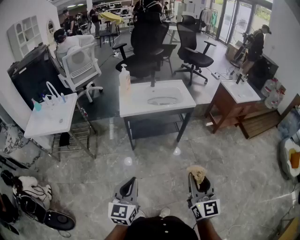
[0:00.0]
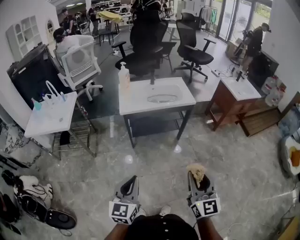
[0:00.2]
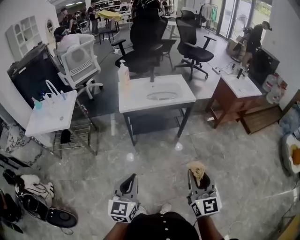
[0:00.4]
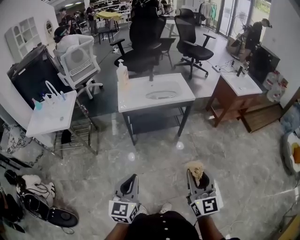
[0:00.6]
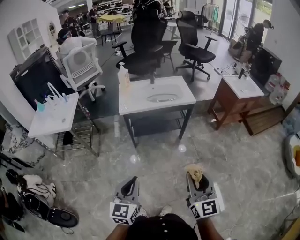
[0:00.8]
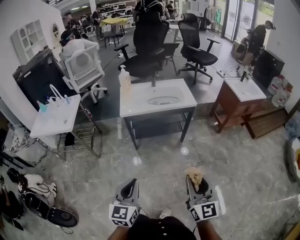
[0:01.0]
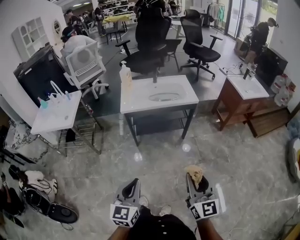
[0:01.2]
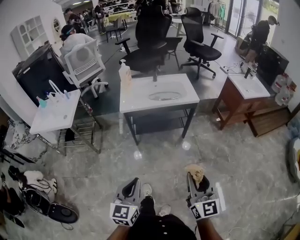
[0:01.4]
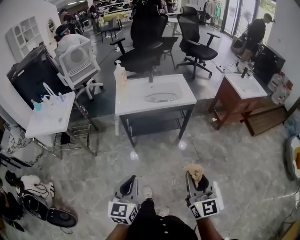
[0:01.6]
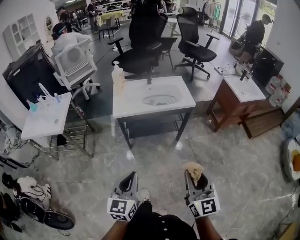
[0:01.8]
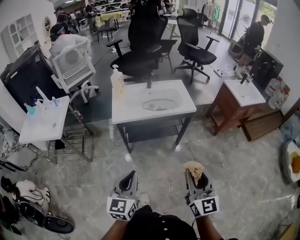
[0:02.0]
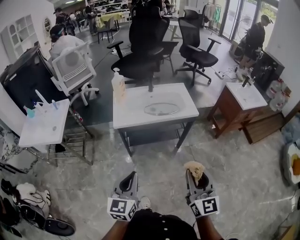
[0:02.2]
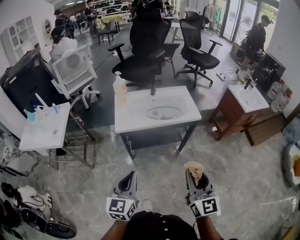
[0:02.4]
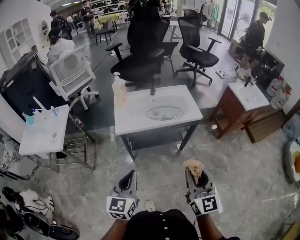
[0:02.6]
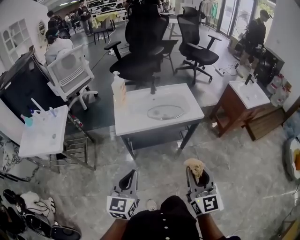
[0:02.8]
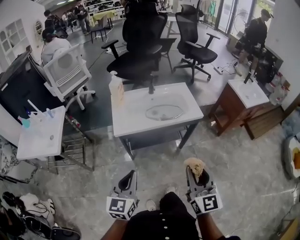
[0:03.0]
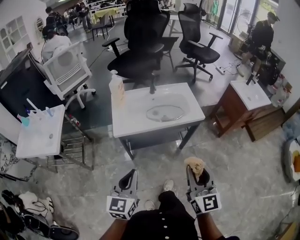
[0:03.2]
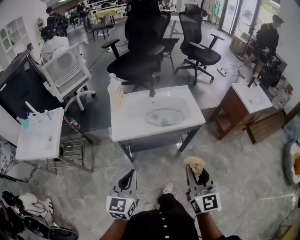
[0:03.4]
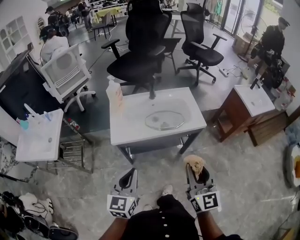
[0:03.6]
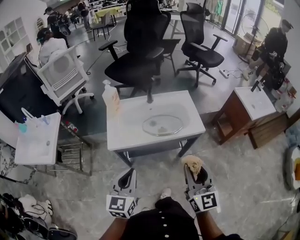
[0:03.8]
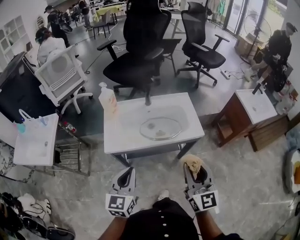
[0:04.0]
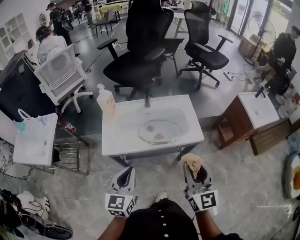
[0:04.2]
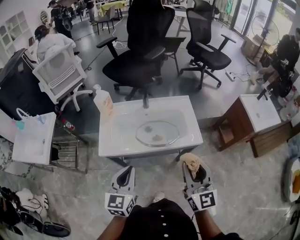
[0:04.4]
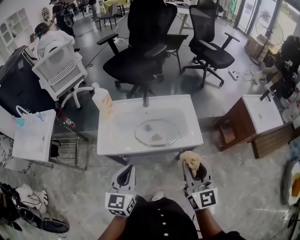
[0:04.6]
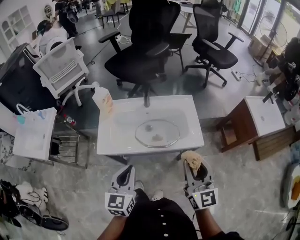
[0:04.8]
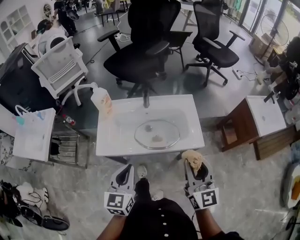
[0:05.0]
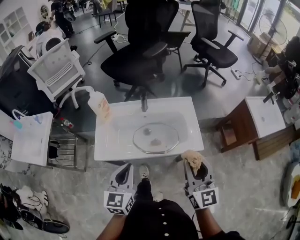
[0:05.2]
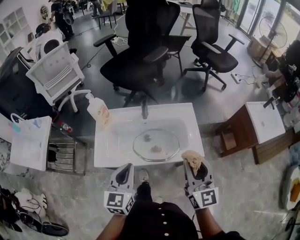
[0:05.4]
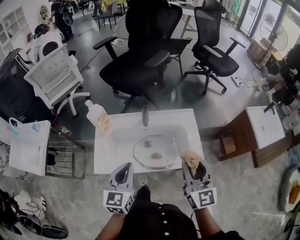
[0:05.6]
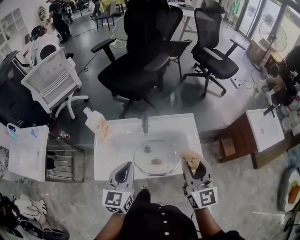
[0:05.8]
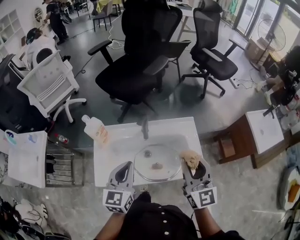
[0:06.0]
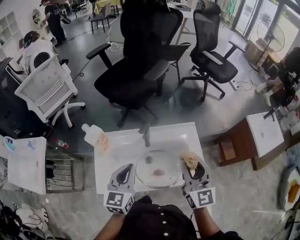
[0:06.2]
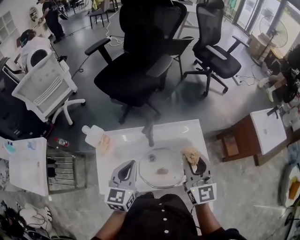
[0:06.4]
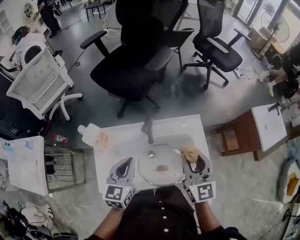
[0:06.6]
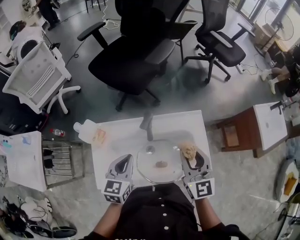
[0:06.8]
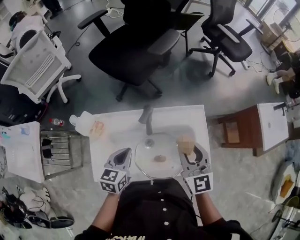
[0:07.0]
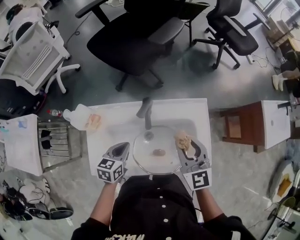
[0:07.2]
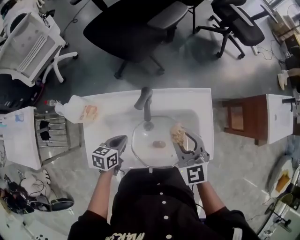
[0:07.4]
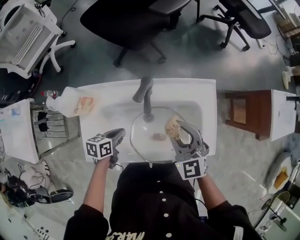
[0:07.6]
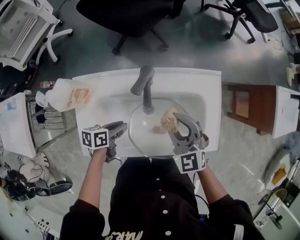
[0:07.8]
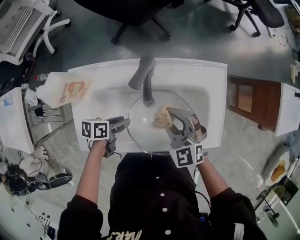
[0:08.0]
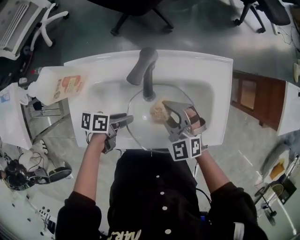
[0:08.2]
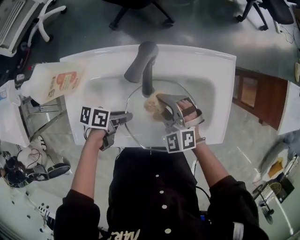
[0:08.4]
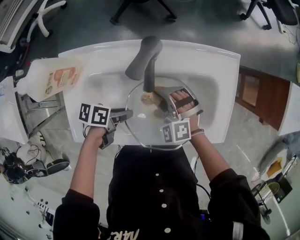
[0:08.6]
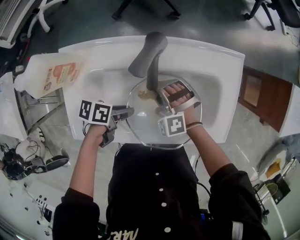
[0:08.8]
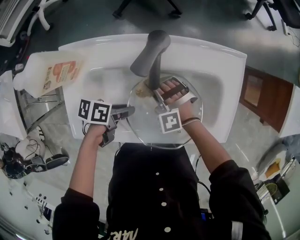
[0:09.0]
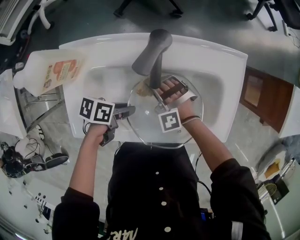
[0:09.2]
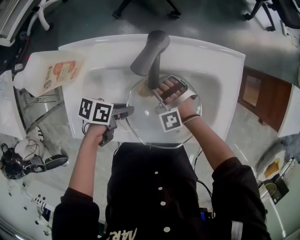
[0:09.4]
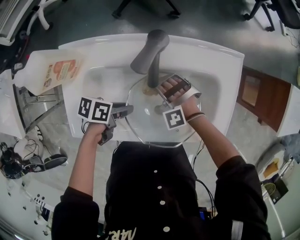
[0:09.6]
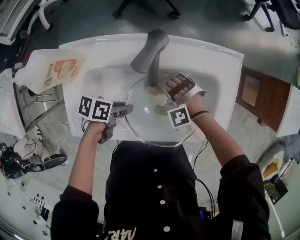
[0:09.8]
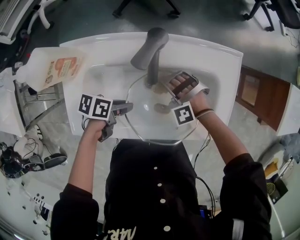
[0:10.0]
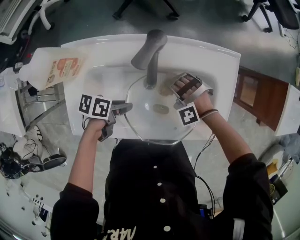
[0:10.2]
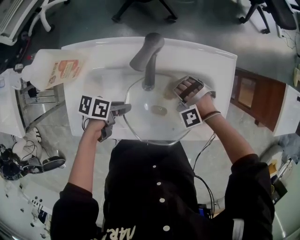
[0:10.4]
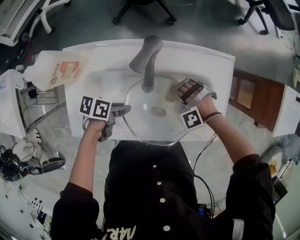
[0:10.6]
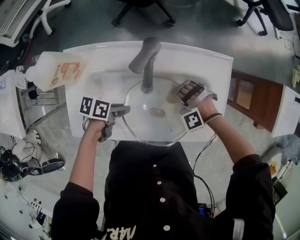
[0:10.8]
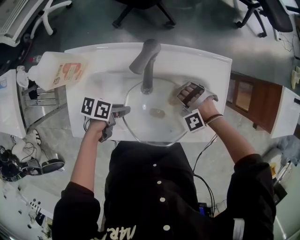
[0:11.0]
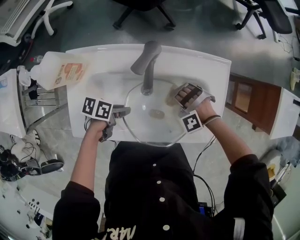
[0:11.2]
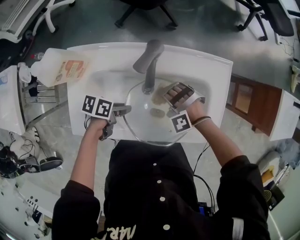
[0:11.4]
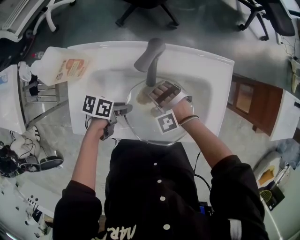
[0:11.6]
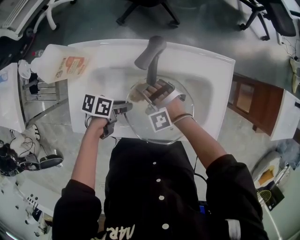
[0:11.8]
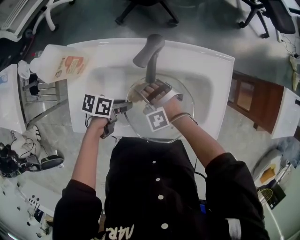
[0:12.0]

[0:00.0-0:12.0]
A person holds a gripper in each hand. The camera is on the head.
0.0 to 1.6 s: The right gripper shifts about 5 cm forward. Meanwhile the left gripper moves to the right, some 5 cm.
1.6 to 3.0 s: The grippers both shift forward by some 20 cm.
3.0 to 4.4 s: The left gripper heads forward and to the right, covering approximately 25 cm. Meanwhile the right gripper shifts roughly 25 cm forward.
4.4 to 6.0 s: The grippers both shift forward by about 25 cm.
6.0 to 7.6 s: The left gripper travels downward by roughly 25 cm, and tips its fingers downward by roughly 30 degrees. The right gripper travels downward, forward and to the left by roughly 25 cm, and rotates roughly 40 degrees.
7.6 to 9.0 s: The left gripper travels downward by some 5 cm, rotates about 30 degrees, and opens its fingers. Meanwhile the right gripper travels downward by roughly 25 cm, and rolls counterclockwise, seen from behind, by some 50 degrees.
9.0 to 10.4 s: The right gripper ends up some 10 cm from where it was, and changes its angle by some 20 degrees.
10.4 to 12.0 s: The right gripper moves approximately 15 cm.

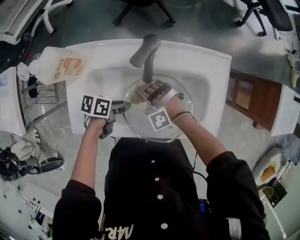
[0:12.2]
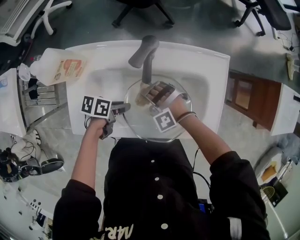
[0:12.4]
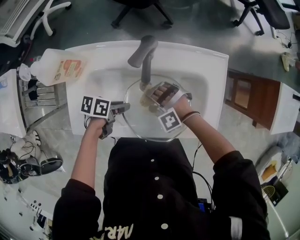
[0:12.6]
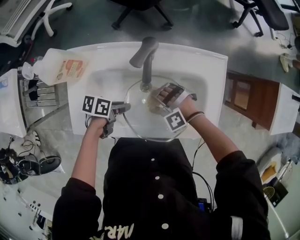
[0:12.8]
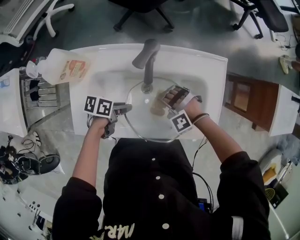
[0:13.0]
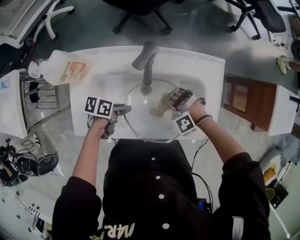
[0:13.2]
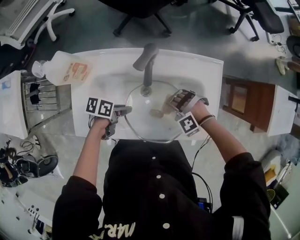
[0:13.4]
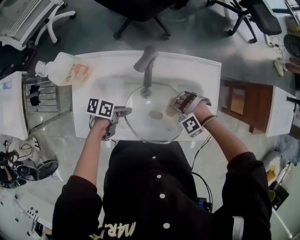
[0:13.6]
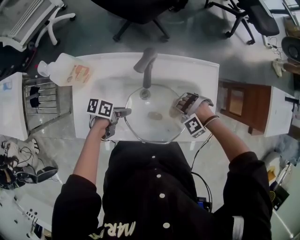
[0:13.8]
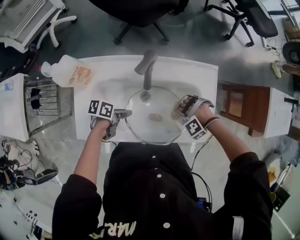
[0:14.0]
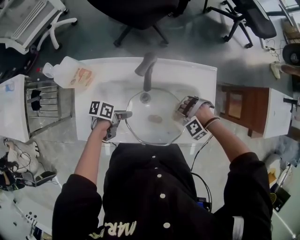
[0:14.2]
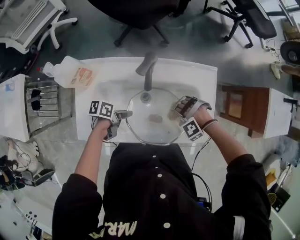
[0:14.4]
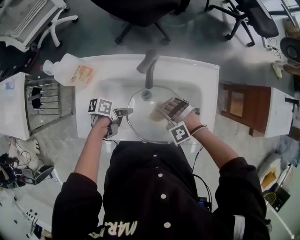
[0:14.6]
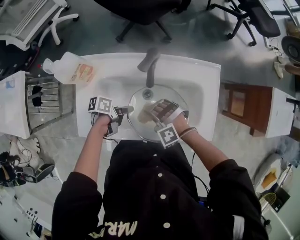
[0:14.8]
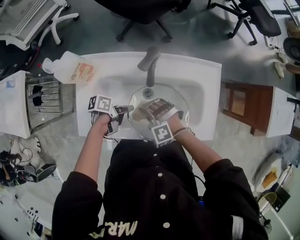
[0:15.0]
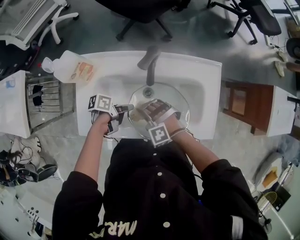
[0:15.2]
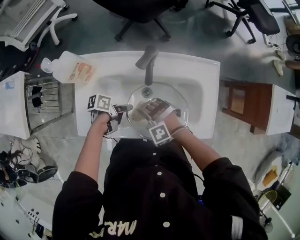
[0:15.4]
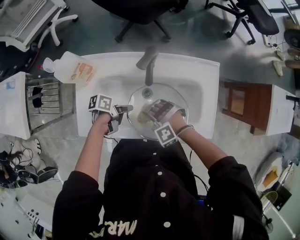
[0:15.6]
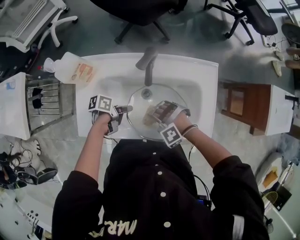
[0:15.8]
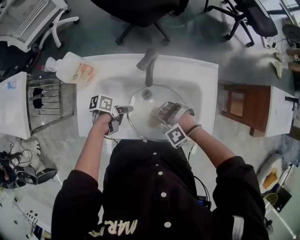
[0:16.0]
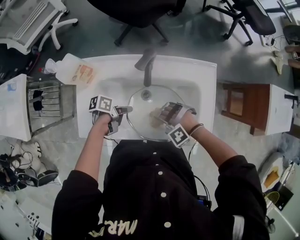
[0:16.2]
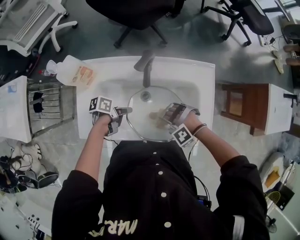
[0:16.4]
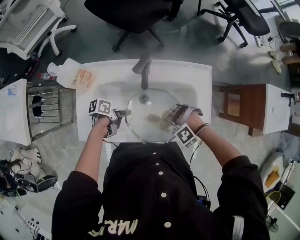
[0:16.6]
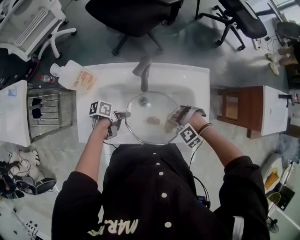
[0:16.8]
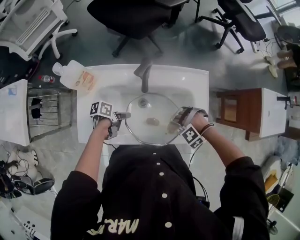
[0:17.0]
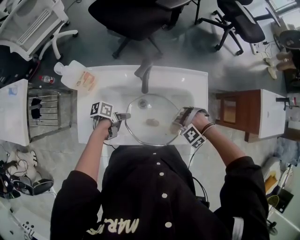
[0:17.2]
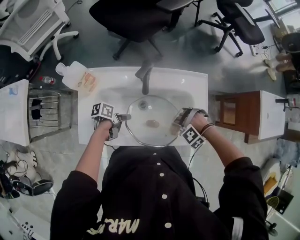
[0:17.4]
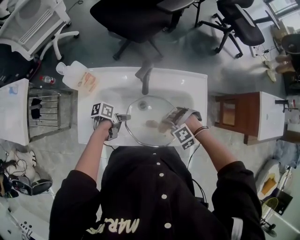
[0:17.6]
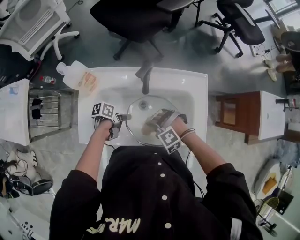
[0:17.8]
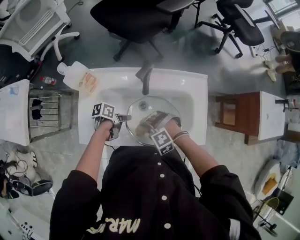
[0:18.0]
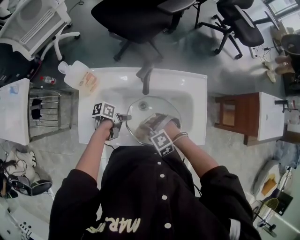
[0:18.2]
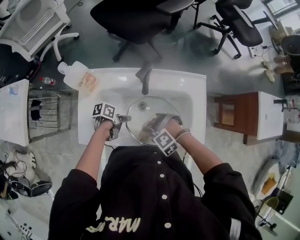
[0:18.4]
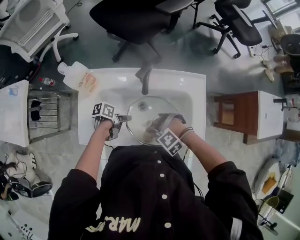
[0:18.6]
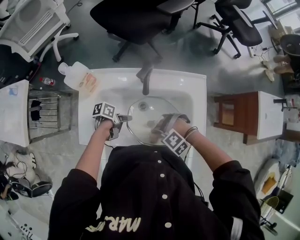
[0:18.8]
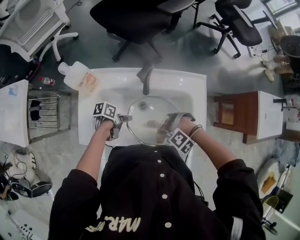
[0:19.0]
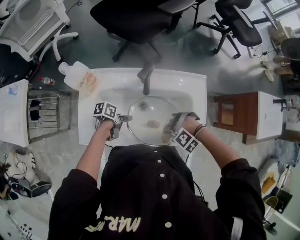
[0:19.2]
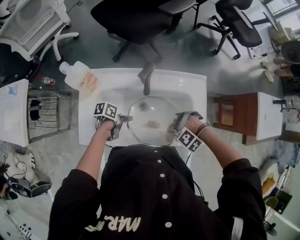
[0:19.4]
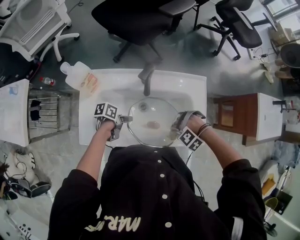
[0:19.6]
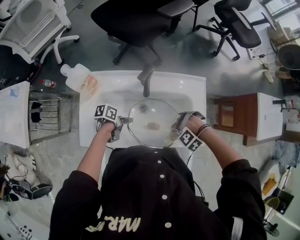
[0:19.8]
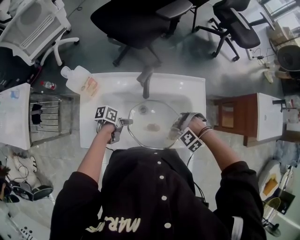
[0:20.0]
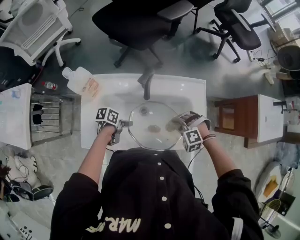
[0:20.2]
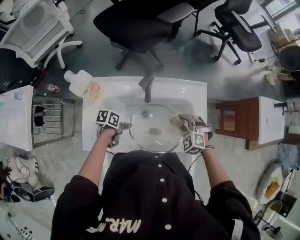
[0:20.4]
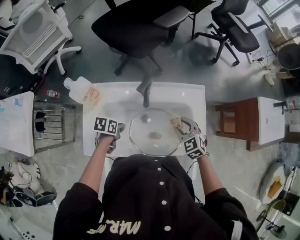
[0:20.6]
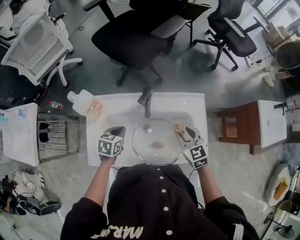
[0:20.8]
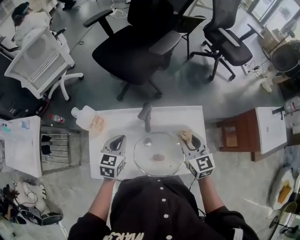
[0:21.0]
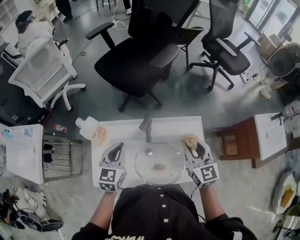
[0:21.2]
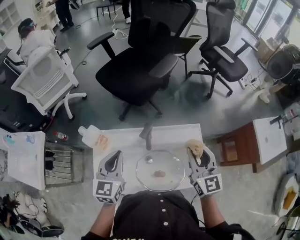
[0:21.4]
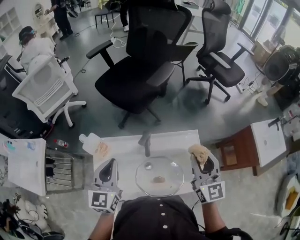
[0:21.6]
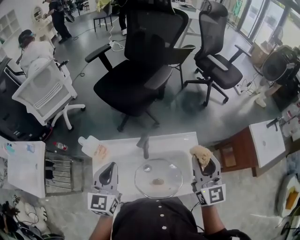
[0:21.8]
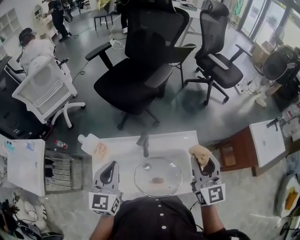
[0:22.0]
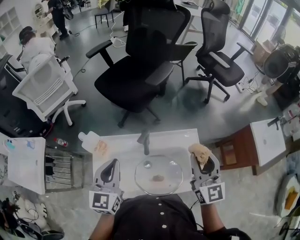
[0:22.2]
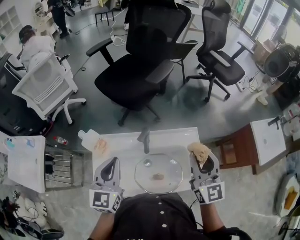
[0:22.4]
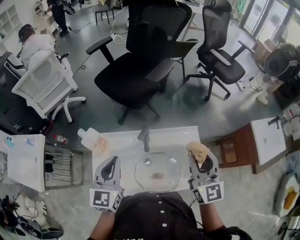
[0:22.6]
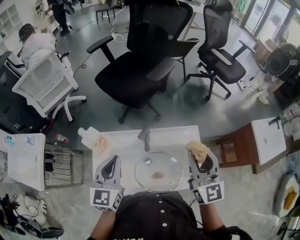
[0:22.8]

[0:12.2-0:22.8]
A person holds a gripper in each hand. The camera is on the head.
12.2 to 13.8 s: The right gripper ends up roughly 20 cm from where it was, and rotates roughly 40 degrees.
13.8 to 15.2 s: The right gripper moves about 20 cm, and rotates approximately 40 degrees.
15.2 to 16.8 s: The right gripper ends up roughly 20 cm from where it was, and changes its angle by roughly 40 degrees.
16.8 to 18.2 s: The right gripper ends up about 15 cm from where it was.
18.2 to 19.8 s: The right gripper moves some 15 cm, and changes its angle by some 30 degrees.
19.8 to 21.2 s: The grippers both shift upward by some 25 cm. The right gripper tips its fingers upward by approximately 70 degrees. The left gripper turns by approximately 80 degrees, and closes up.
21.2 to 22.8 s: The two grippers go approximately 10 cm upward.

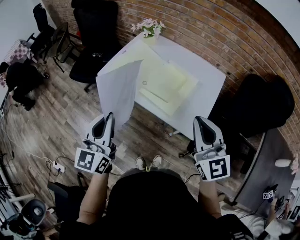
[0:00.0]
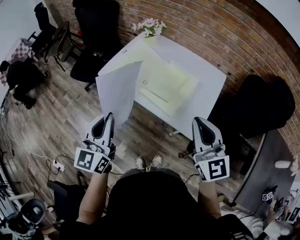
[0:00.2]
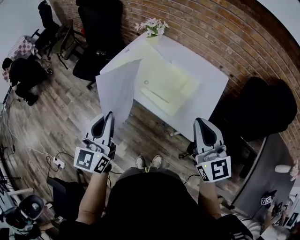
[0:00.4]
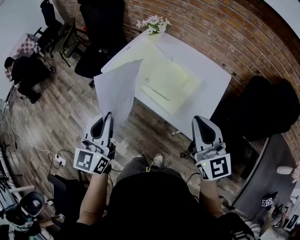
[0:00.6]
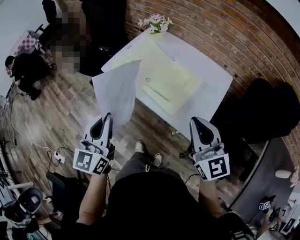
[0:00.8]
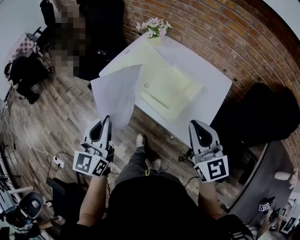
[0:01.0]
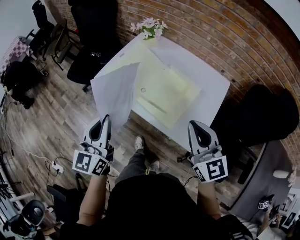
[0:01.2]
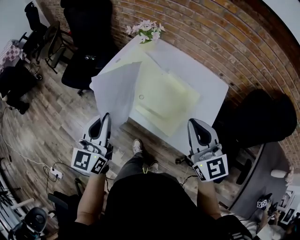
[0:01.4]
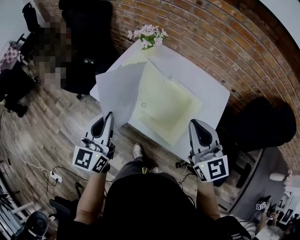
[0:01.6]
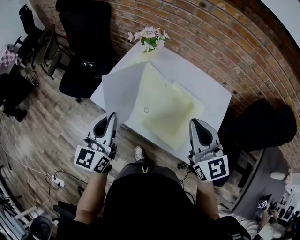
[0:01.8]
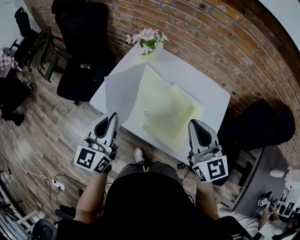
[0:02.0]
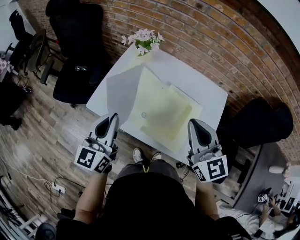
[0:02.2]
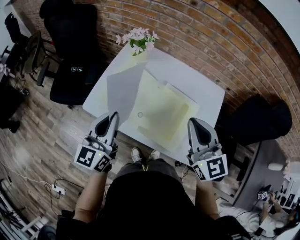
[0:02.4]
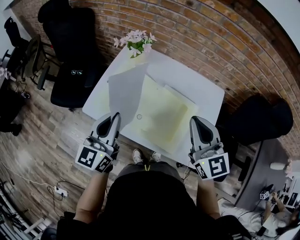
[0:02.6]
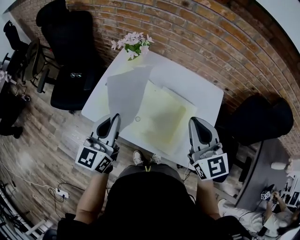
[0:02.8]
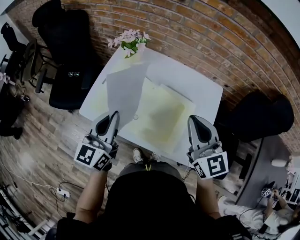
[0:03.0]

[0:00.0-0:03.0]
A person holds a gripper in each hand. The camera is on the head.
0.0 to 1.6 s: Both grippers move forward, approximately 20 cm.
1.6 to 3.0 s: The grippers both shift forward by some 10 cm.
